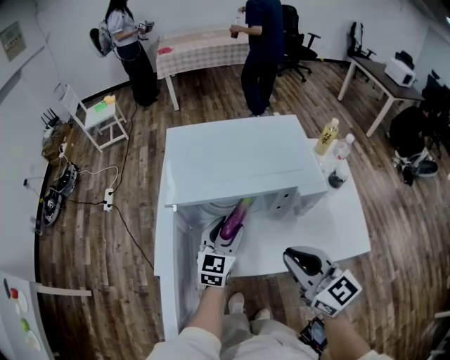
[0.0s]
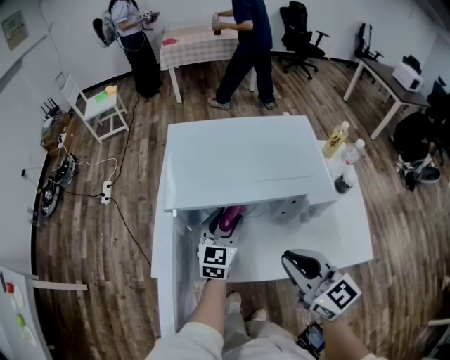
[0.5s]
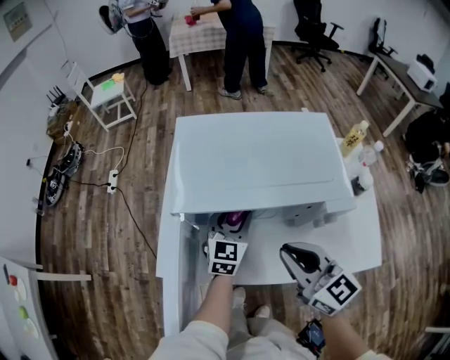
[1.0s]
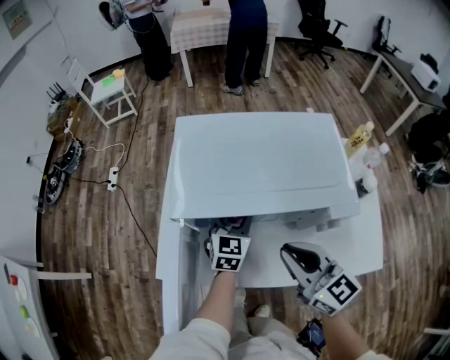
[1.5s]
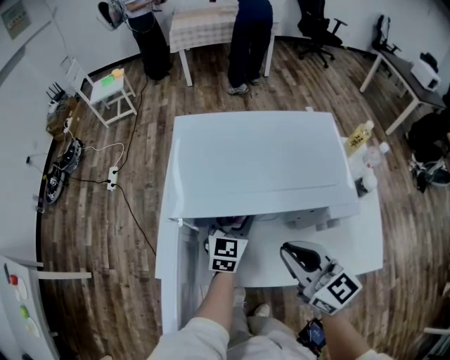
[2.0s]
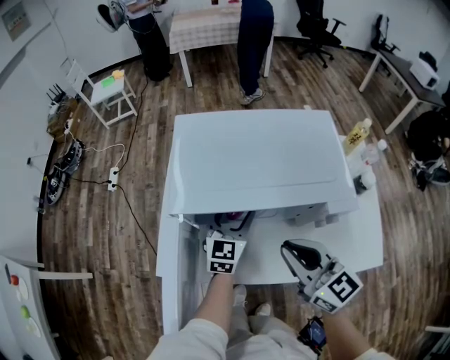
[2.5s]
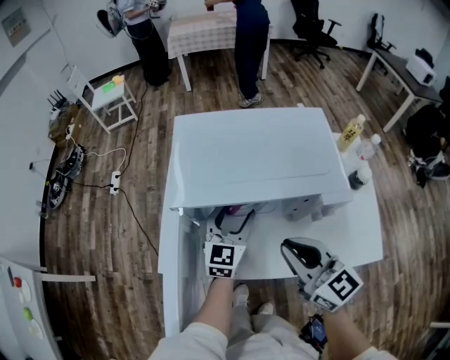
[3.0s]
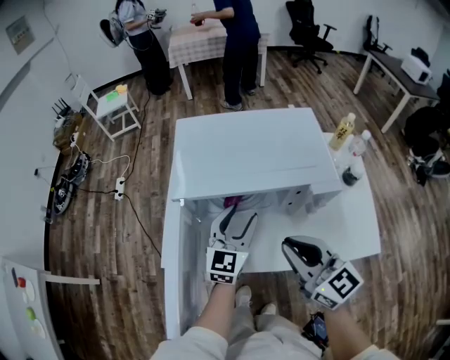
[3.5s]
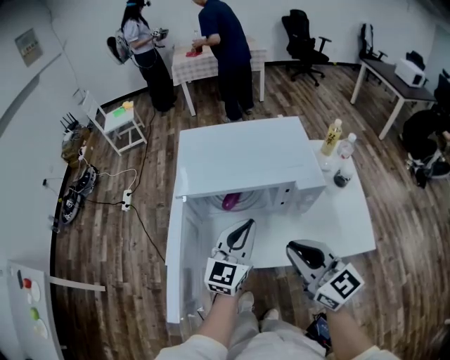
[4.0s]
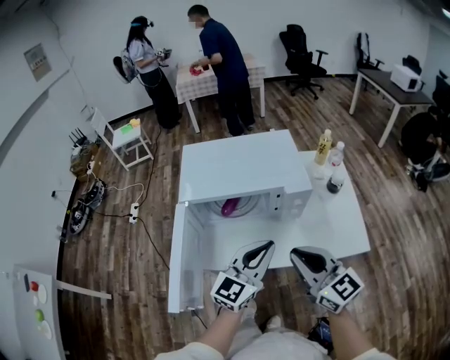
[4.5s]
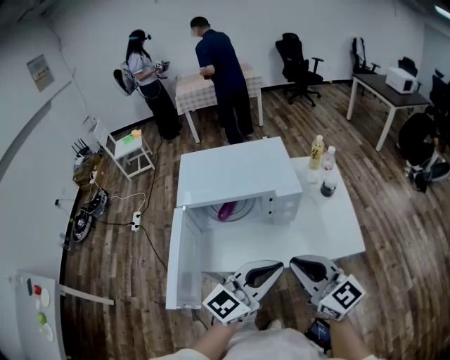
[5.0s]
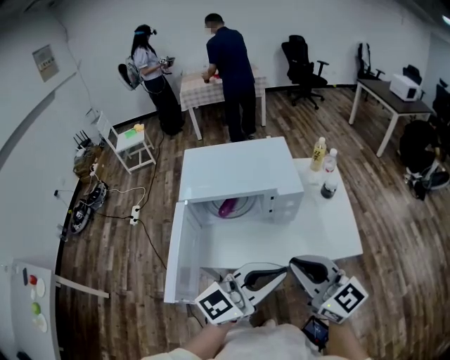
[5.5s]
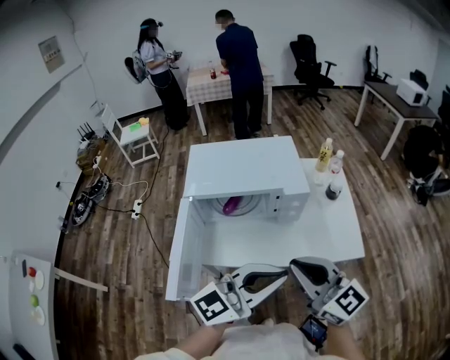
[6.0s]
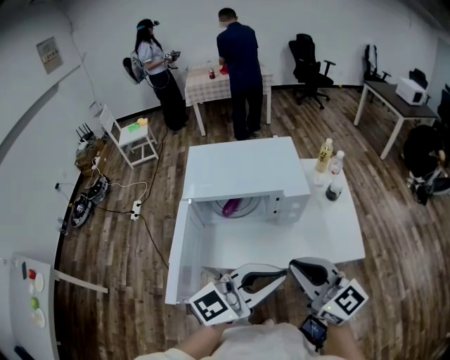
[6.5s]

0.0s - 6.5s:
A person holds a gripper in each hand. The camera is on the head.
0.0s - 2.0s: Both grippers travel together forward, about 10 cm.
2.0s - 4.5s: The left gripper travels backward and upward by roughly 30 cm, rotates about 30 degrees, and closes up, while the right gripper is displaced backward, upward and to the right by approximately 20 cm.
4.5s - 6.5s: The right gripper moves upward, some 5 cm, while the left gripper moves backward and upward, about 15 cm, and swivels some 20 degrees.

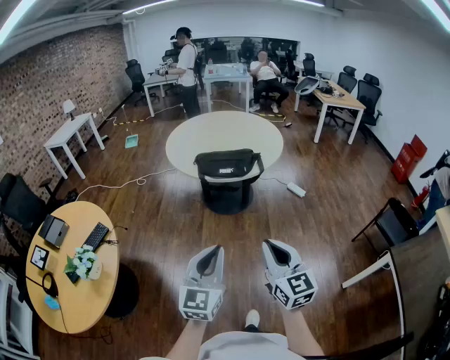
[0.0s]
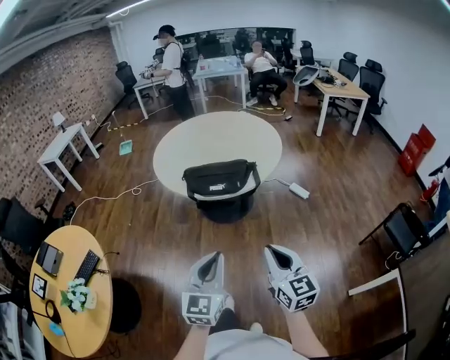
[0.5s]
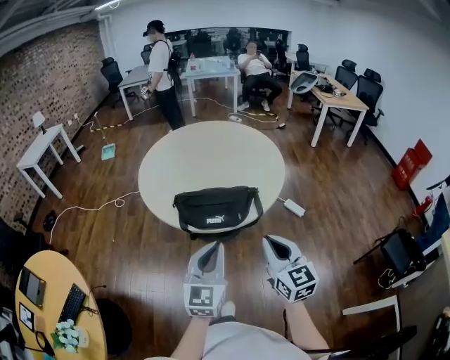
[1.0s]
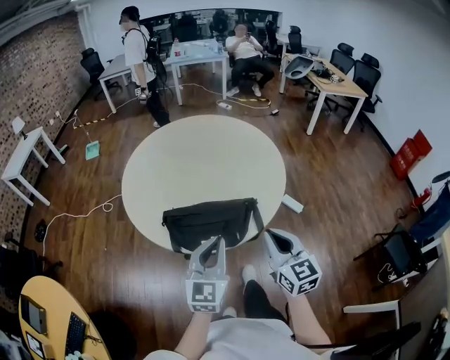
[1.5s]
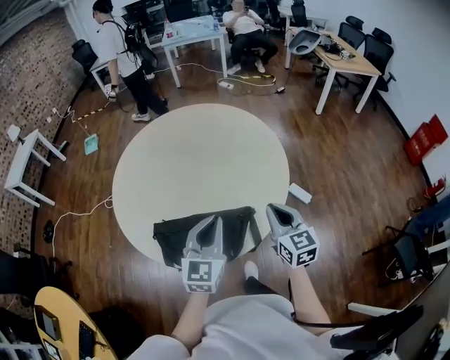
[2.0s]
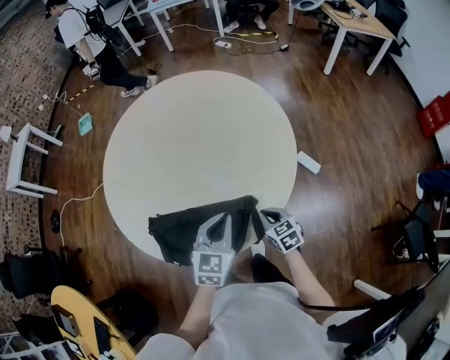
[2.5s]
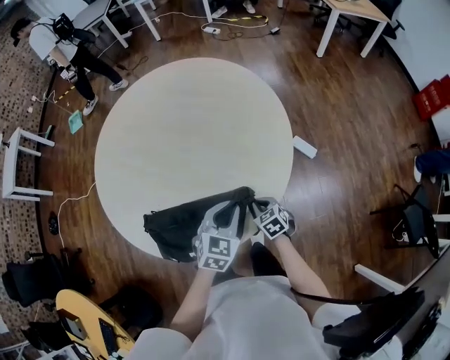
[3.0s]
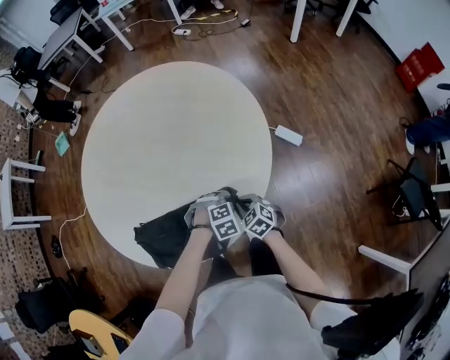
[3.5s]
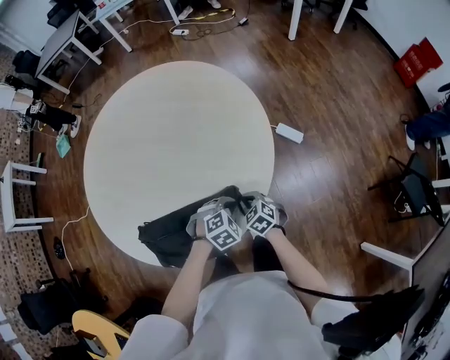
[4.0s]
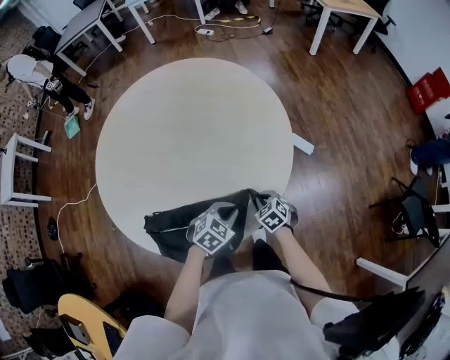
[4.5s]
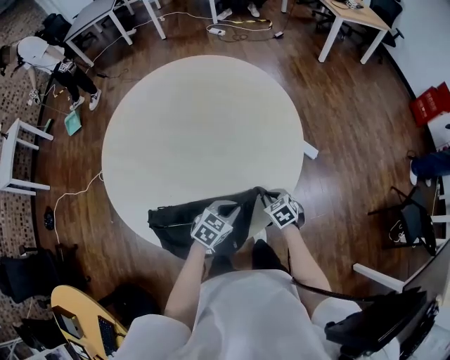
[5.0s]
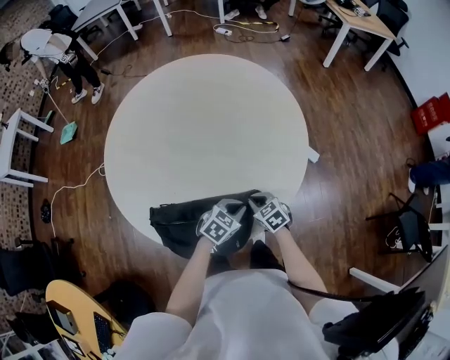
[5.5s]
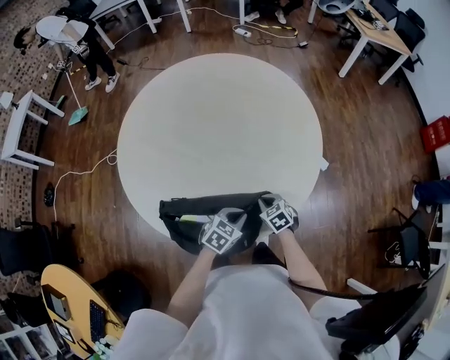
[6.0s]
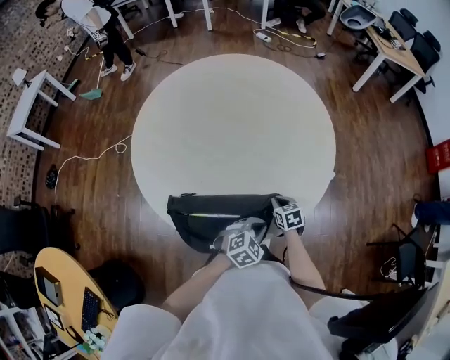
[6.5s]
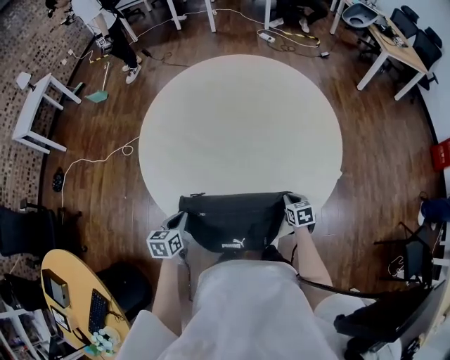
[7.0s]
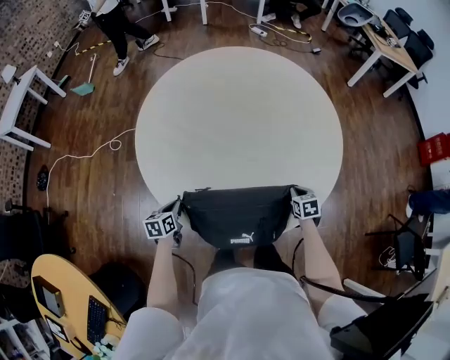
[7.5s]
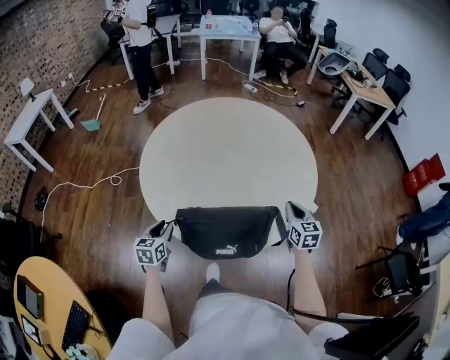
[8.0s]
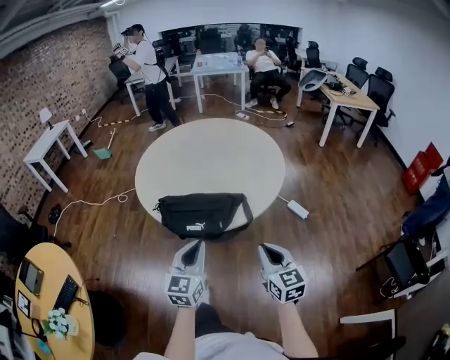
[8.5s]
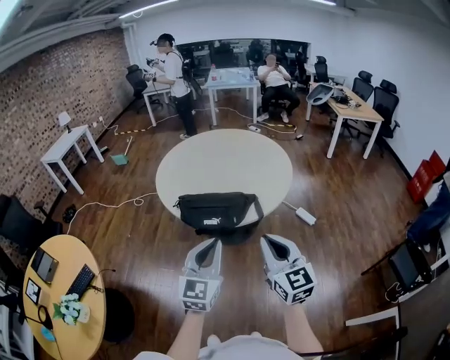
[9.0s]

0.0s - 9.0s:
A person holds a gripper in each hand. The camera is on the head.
0.0s - 2.0s: The two grippers travel together, forward, roughly 80 cm.
2.0s - 4.5s: The grippers both shift downward by roughly 30 cm. The right gripper angles its fingers downward, by about 40 degrees. The left gripper tilts its fingers roughly 40 degrees downward, and opens, then closes once more.
4.5s - 7.0s: The left gripper goes some 35 cm to the left, and rotates around the line of its fingers by some 50 degrees, counterclockwise from behind. Meanwhile the right gripper shifts approximately 5 cm to the left.
7.0s - 9.0s: The two grippers travel together, backward, some 50 cm. Both grippers travel together upward, approximately 40 cm. The right gripper angles its fingers upward, by about 50 degrees, while the left gripper points its fingers about 40 degrees further upward, and opens, then closes again.

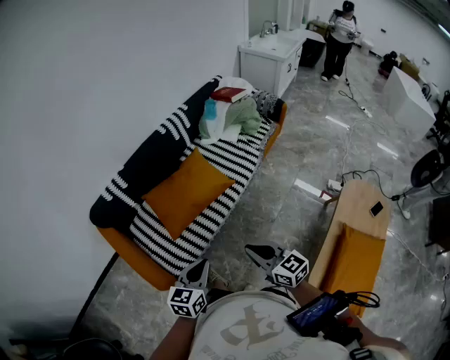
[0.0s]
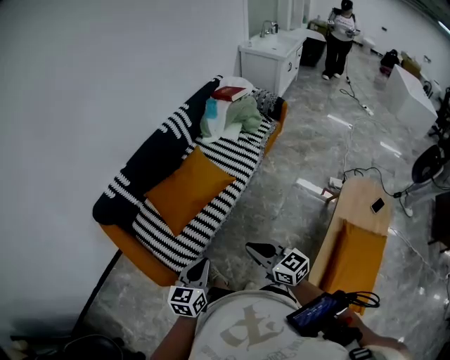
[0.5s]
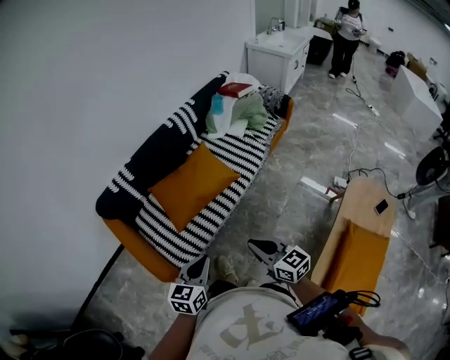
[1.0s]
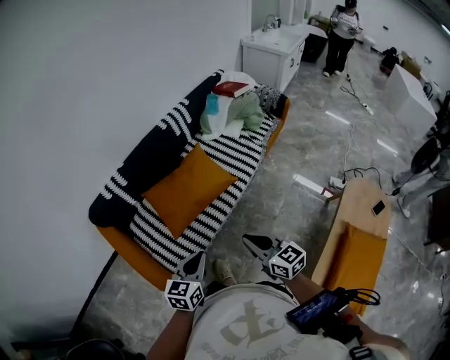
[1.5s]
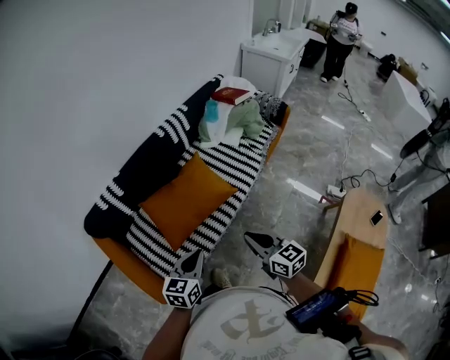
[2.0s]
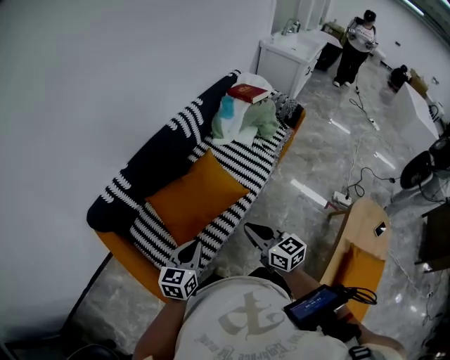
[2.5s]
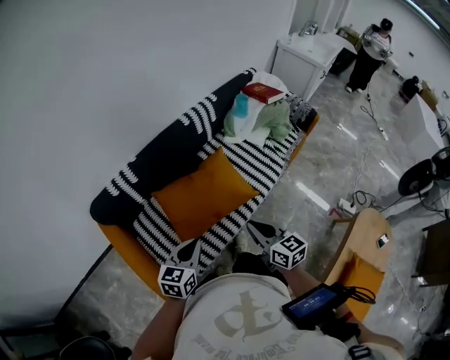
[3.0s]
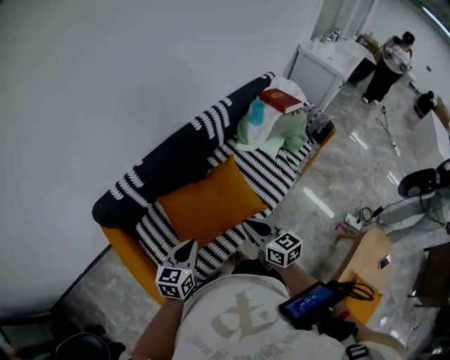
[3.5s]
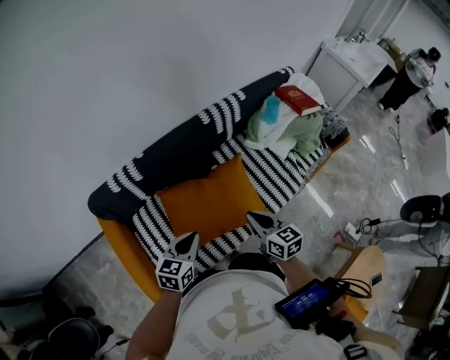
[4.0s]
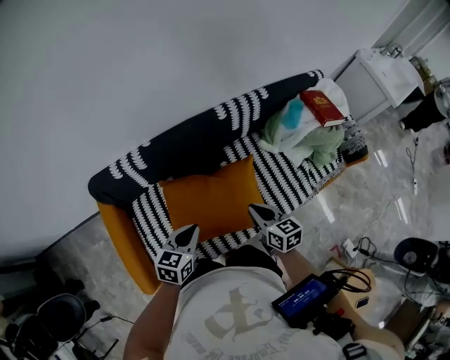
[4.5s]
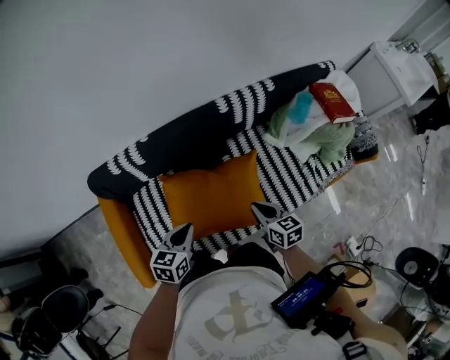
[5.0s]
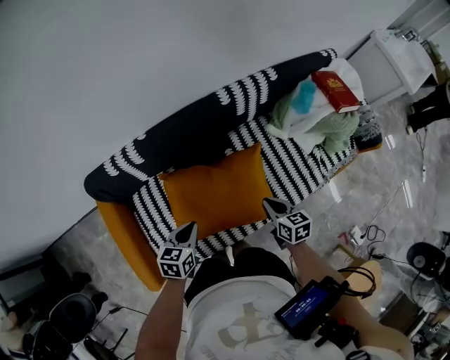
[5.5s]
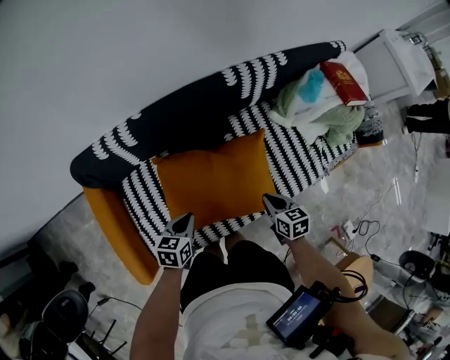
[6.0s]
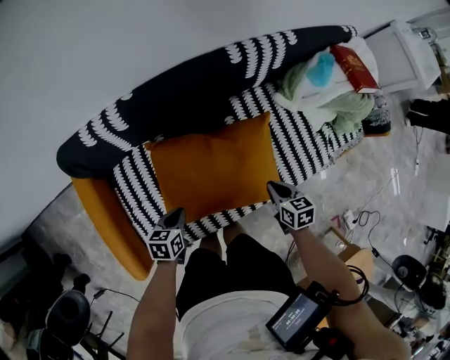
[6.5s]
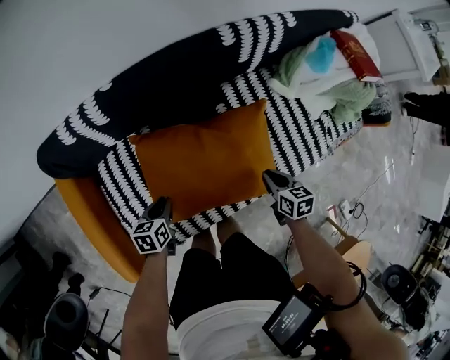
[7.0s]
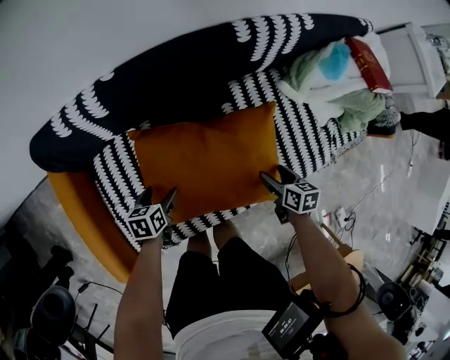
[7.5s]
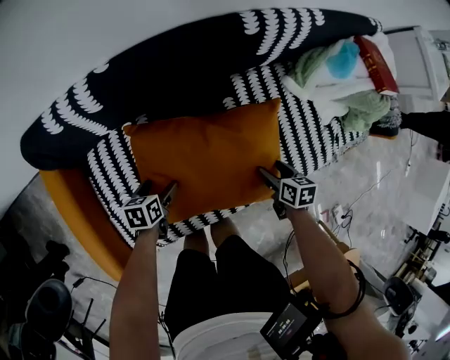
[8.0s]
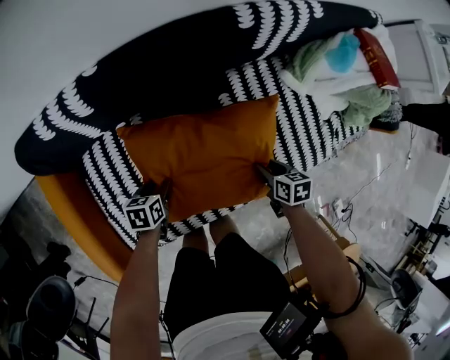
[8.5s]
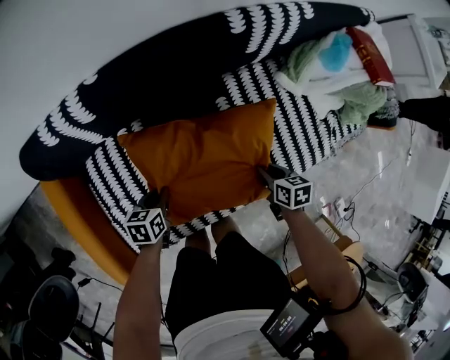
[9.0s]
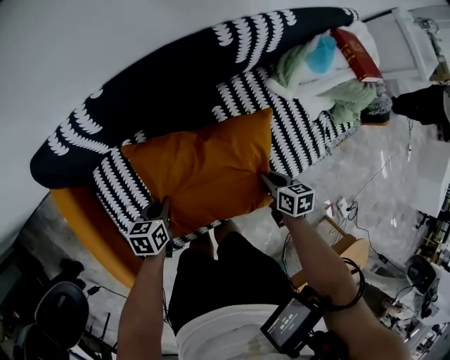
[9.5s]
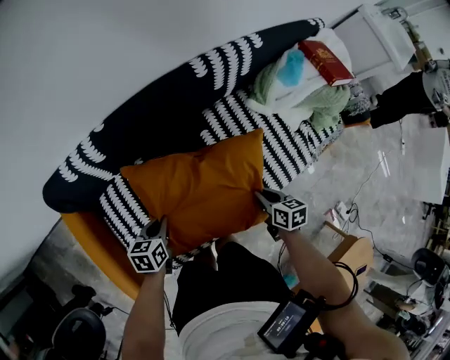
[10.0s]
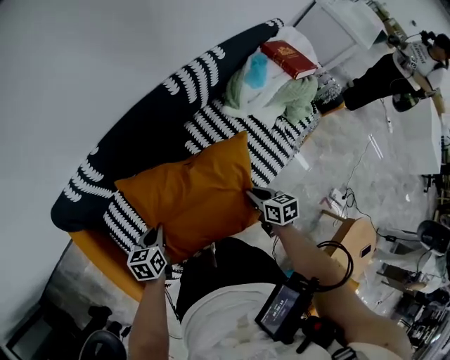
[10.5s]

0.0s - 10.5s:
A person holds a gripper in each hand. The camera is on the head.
0.0s - 2.0s: The two grippers go roughly 15 cm forward.
2.0s - 4.0s: The two grippers go about 30 cm forward.
4.0s - 6.5s: Both grippers travel together downward, about 25 cm. The right gripper changes its angle by roughly 30 degrees. The left gripper swivels some 30 degrees.
6.5s - 8.5s: The left gripper heads downward and forward, covering roughly 15 cm, and opens its fingers. The right gripper is displaced downward by roughly 10 cm, and opens its fingers.
8.5s - 10.5s: Both grippers travel together upward, about 20 cm. The left gripper closes its fingers, while the right gripper closes up.
